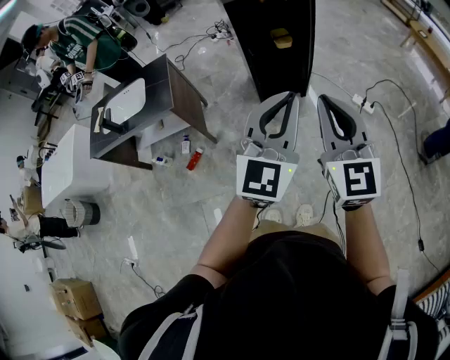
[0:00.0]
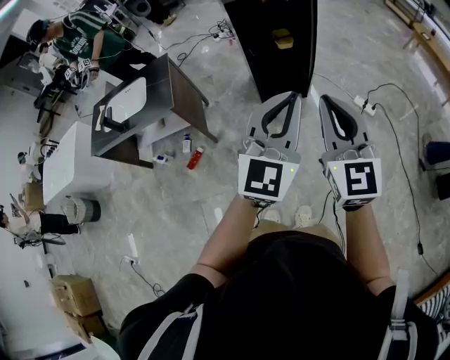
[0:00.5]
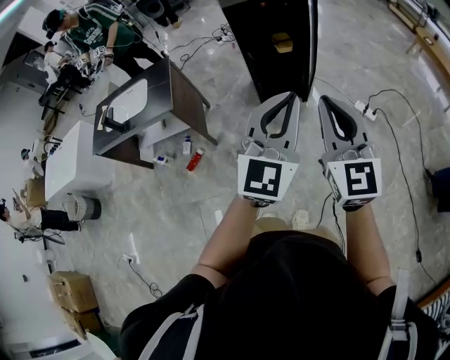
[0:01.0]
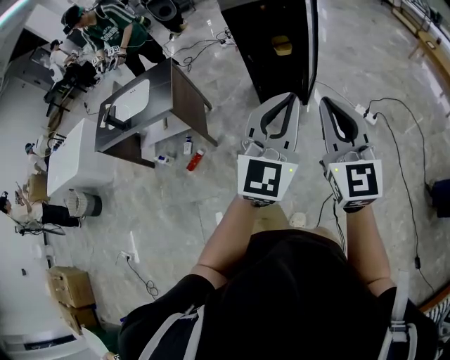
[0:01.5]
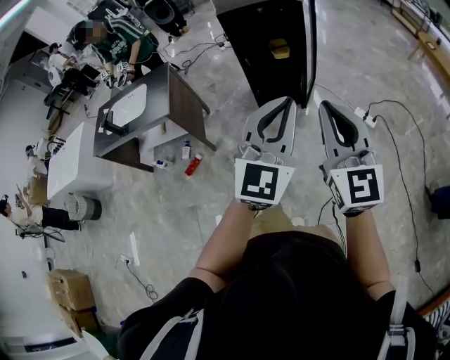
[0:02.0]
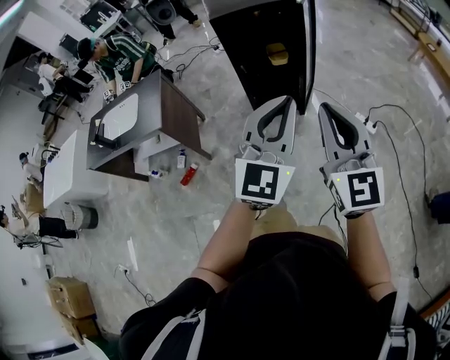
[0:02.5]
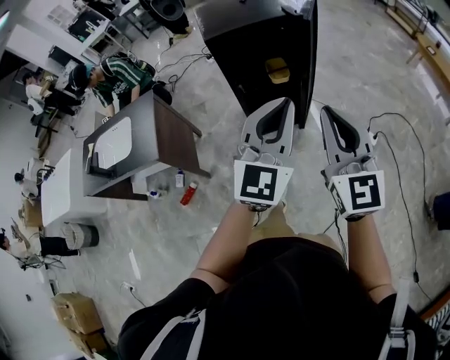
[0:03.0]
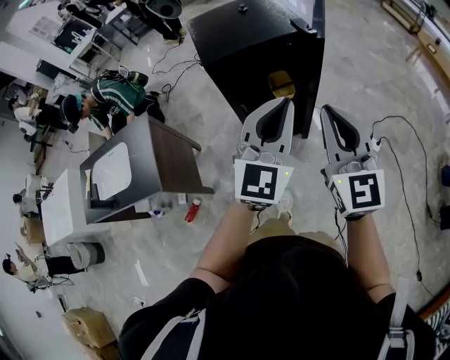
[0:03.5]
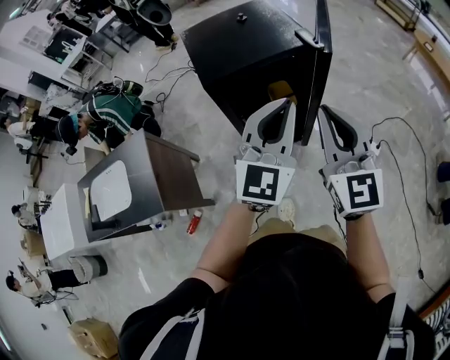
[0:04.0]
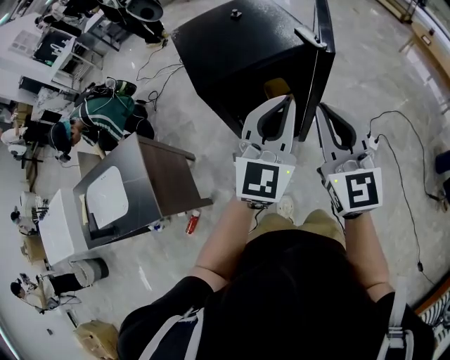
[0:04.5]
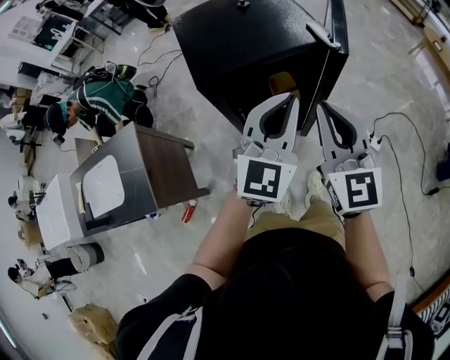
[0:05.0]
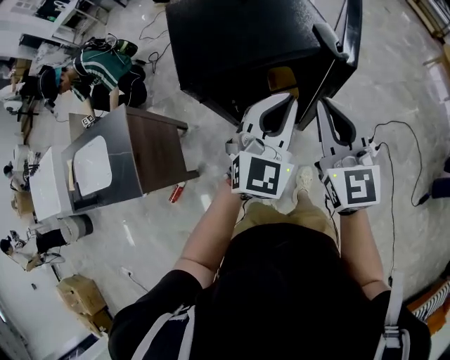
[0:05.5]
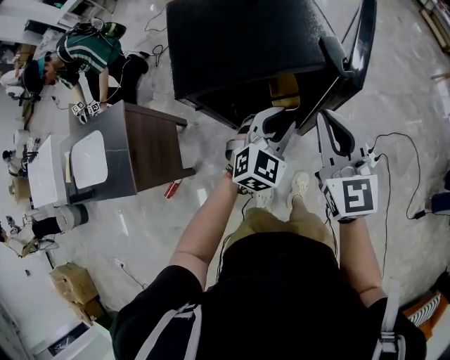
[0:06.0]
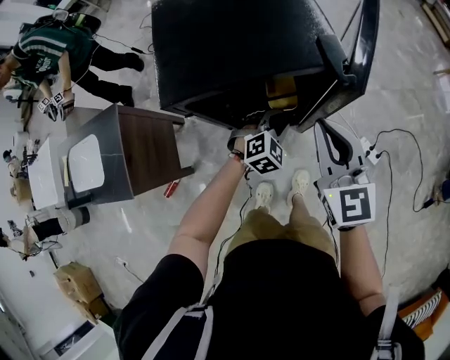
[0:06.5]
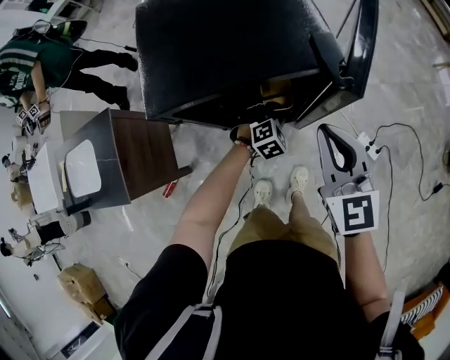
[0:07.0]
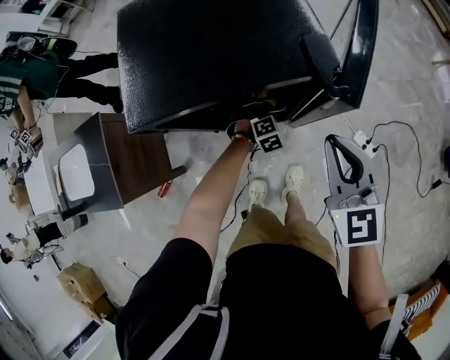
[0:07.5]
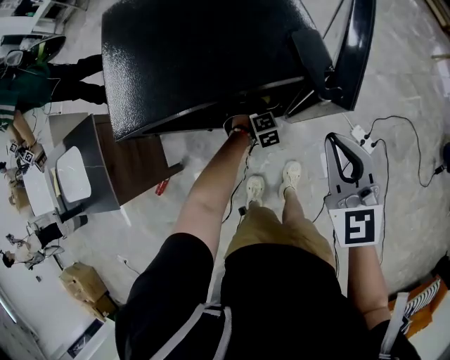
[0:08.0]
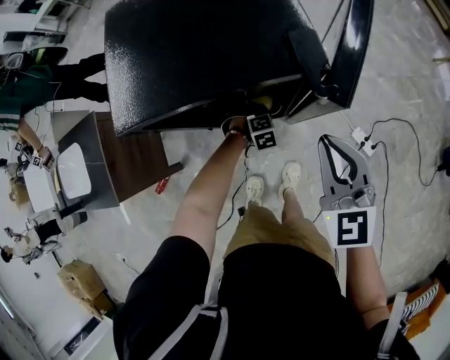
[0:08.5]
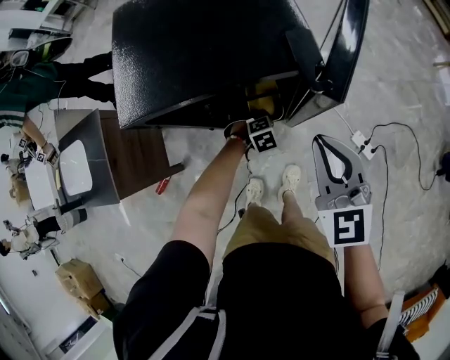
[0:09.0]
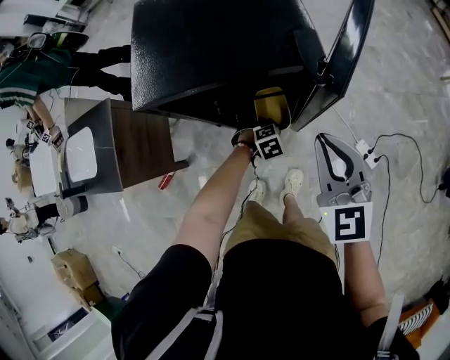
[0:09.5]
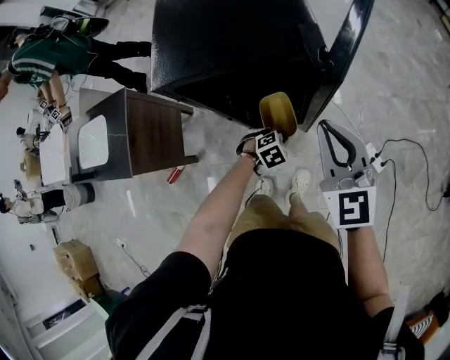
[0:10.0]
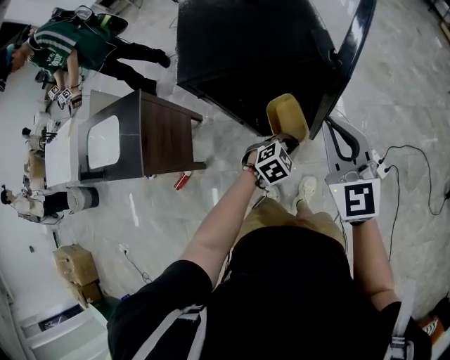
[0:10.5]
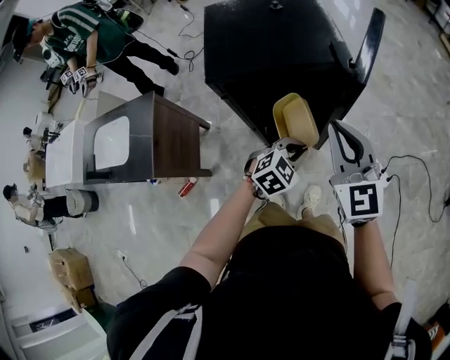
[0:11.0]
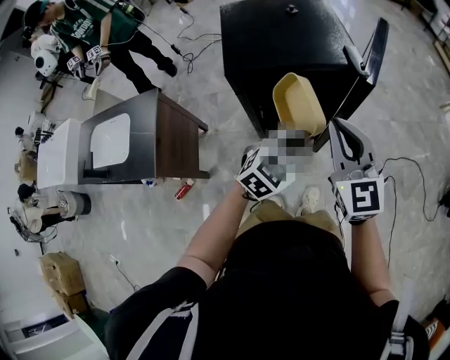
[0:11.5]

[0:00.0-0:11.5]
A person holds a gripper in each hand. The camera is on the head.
0:00.0 to 0:02.0: Both grippers travel together to the right, roughly 10 cm.
0:02.0 to 0:04.0: Both grippers are carried forward, roughly 60 cm.
0:04.0 to 0:06.0: The left gripper heads downward and forward, covering about 30 cm, points its fingers roughly 30 degrees further downward, and opens up, while the right gripper moves forward and downward, about 25 cm.
0:06.0 to 0:07.5: The right gripper goes some 10 cm downward and to the right, while the left gripper goes roughly 30 cm downward, and points its fingers approximately 40 degrees further downward.
0:07.5 to 0:09.5: The left gripper moves some 10 cm, and closes its fingers.
0:09.5 to 0:11.5: The left gripper travels upward and backward by some 40 cm, and tips its fingers upward by roughly 50 degrees. The right gripper goes about 20 cm backward, upward and to the left.

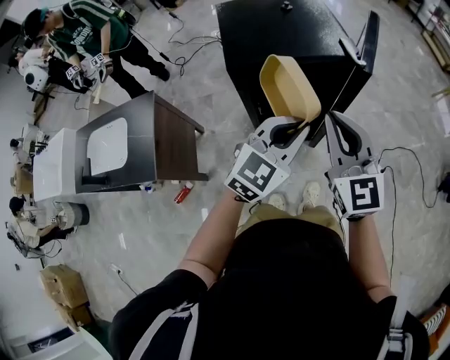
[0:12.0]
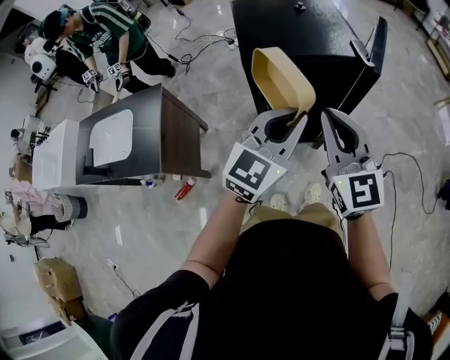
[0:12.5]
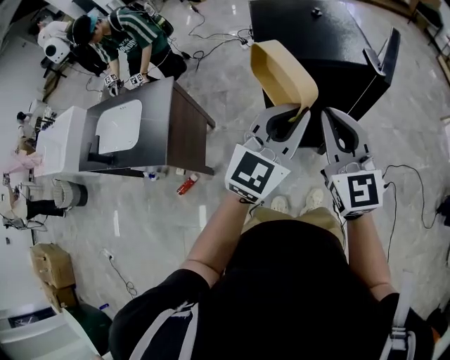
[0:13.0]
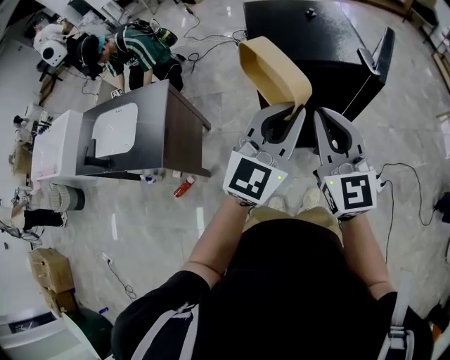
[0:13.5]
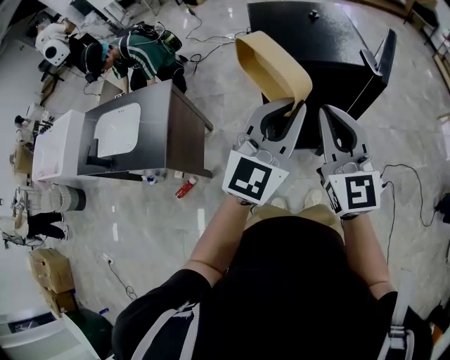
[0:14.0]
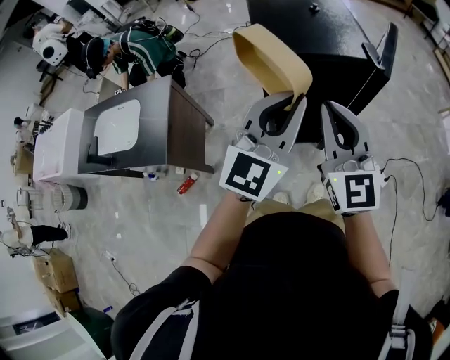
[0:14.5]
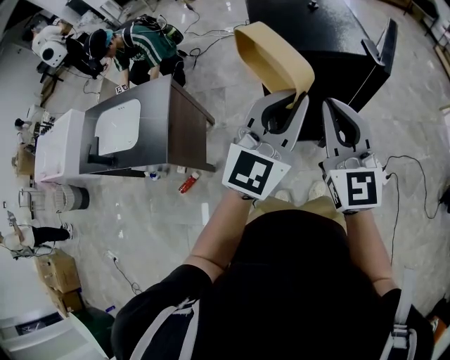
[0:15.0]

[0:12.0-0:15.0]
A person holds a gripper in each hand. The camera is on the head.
0:12.0 to 0:13.5: The left gripper travels upward and to the left by approximately 10 cm, and turns by approximately 20 degrees, while the right gripper travels to the left by some 5 cm.
0:13.5 to 0:15.0: There are only small adjustments of the grippers.

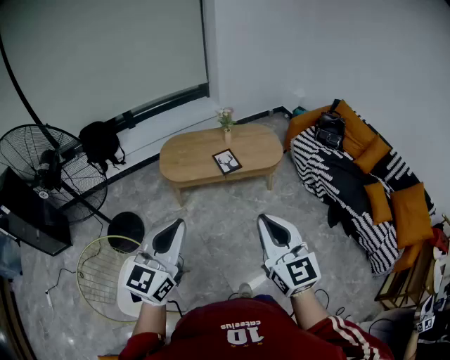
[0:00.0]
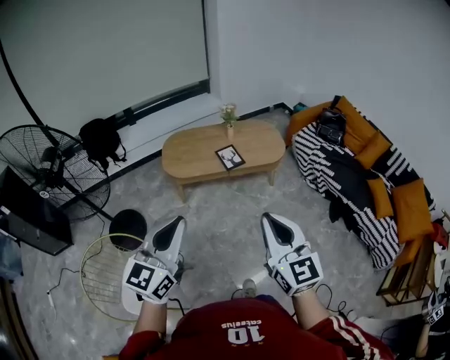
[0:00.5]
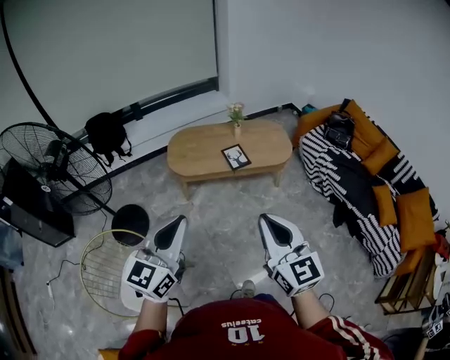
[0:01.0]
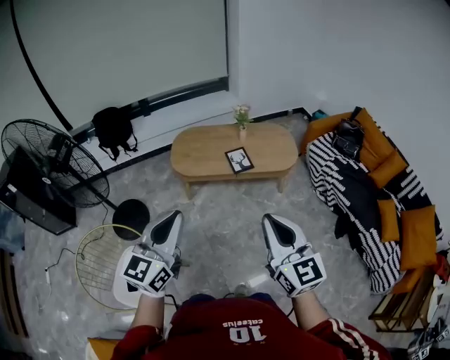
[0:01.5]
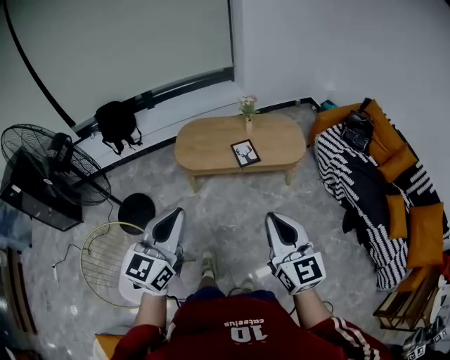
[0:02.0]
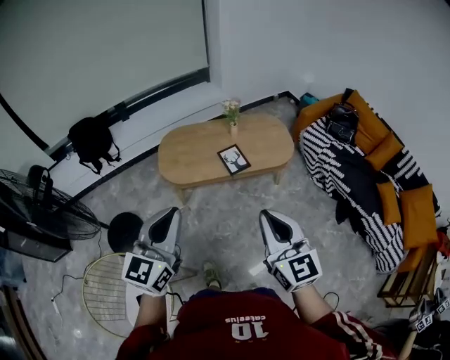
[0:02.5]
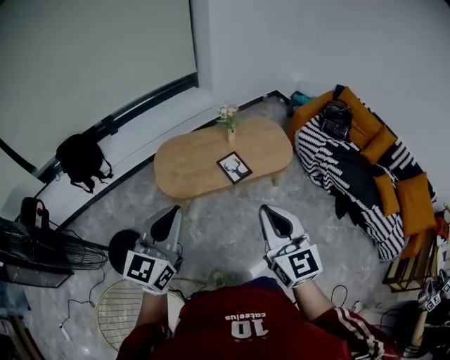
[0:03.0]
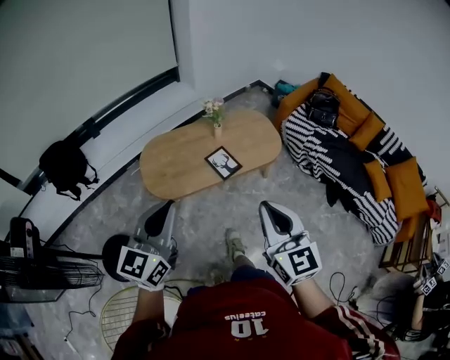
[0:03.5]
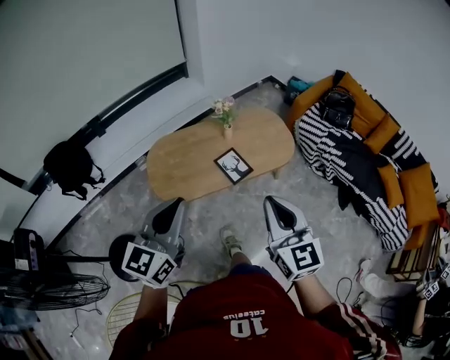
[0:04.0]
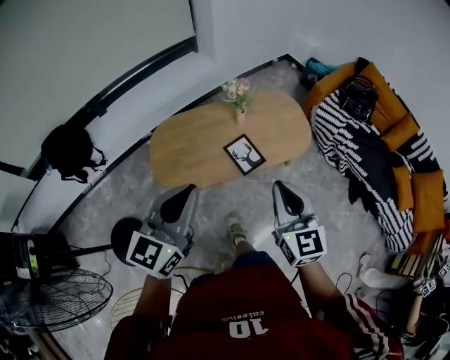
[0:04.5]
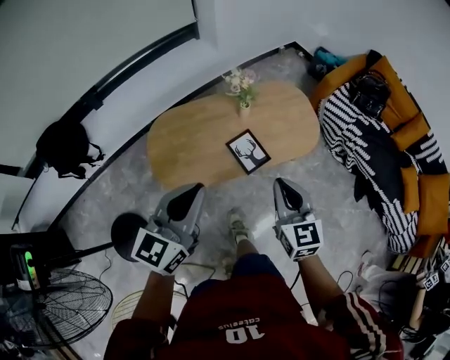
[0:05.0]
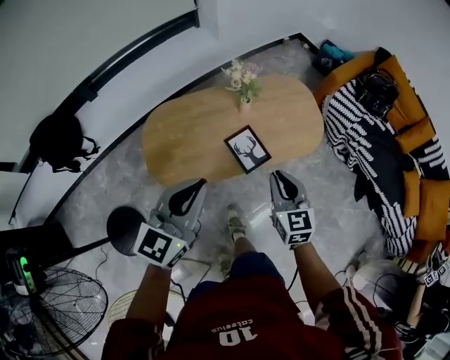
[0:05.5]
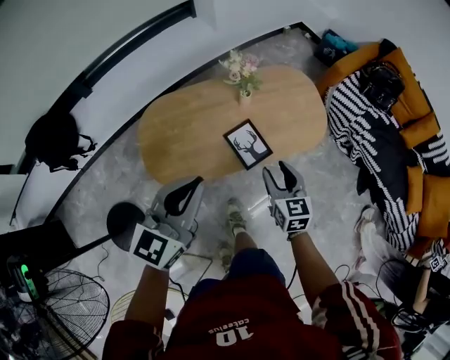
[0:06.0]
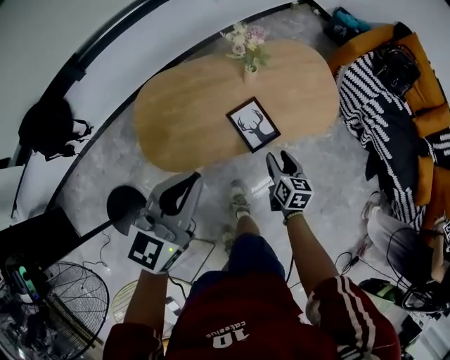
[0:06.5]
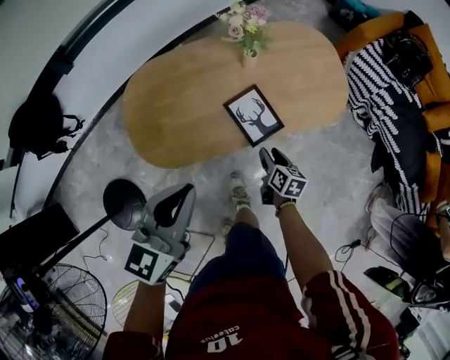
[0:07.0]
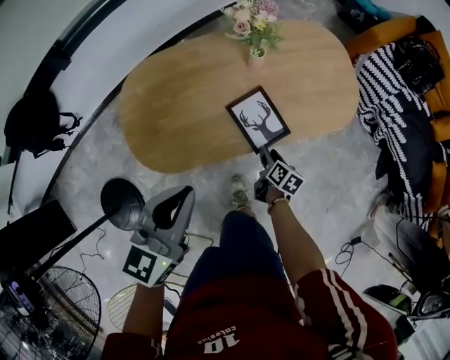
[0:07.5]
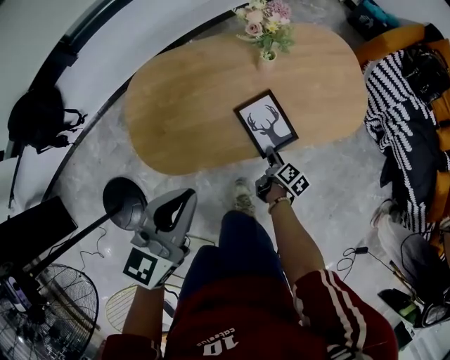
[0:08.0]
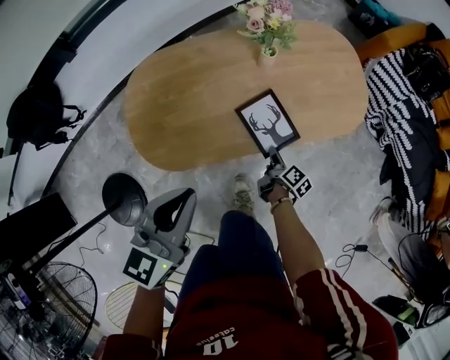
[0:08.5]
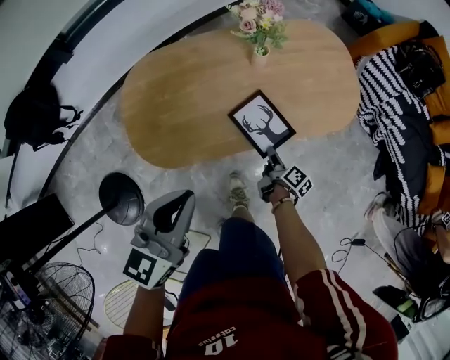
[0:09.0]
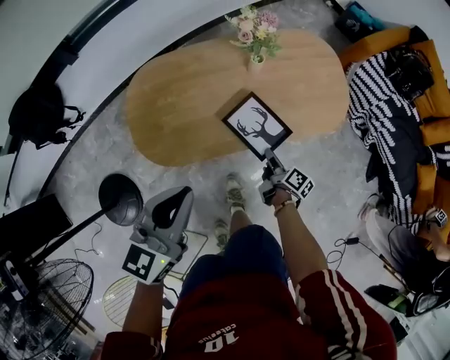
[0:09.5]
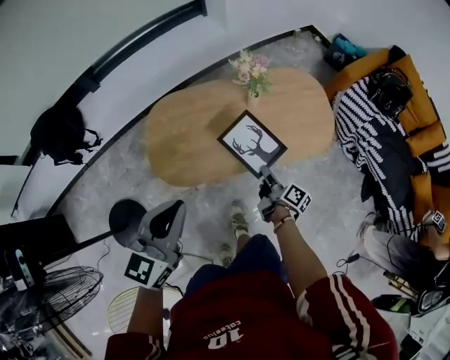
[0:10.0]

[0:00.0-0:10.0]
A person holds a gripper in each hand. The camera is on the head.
0:00.0 to 0:02.0: Both grippers move forward, approximately 5 cm.
0:02.0 to 0:04.0: The grippers both shift forward and to the left by about 30 cm. The right gripper changes its angle by some 20 degrees. Meanwhile the left gripper changes its angle by some 20 degrees.
0:04.0 to 0:06.0: The right gripper moves downward and forward, some 40 cm, rotates roughly 20 degrees, and opens its fingers. Meanwhile the left gripper heads forward and downward, covering approximately 25 cm.
0:06.0 to 0:08.0: The right gripper heads downward, covering approximately 35 cm, and twists some 60 degrees clockwise, seen from behind, while the left gripper moves downward, some 15 cm.
0:08.0 to 0:10.0: The left gripper goes approximately 15 cm upward and backward. The right gripper shifts roughly 20 cm upward, rotates approximately 30 degrees, and closes its fingers.

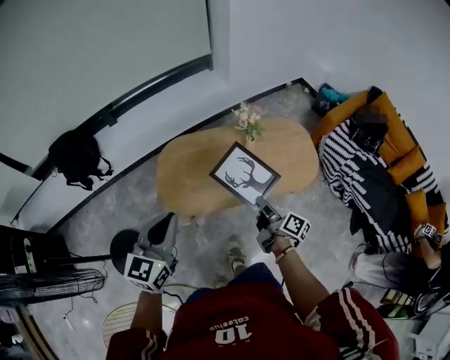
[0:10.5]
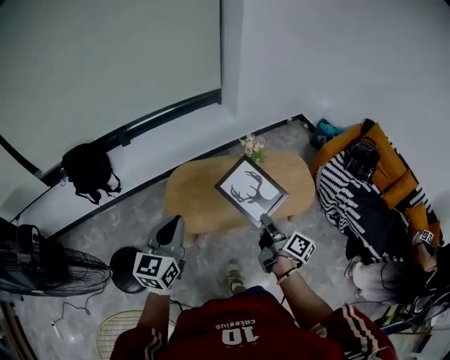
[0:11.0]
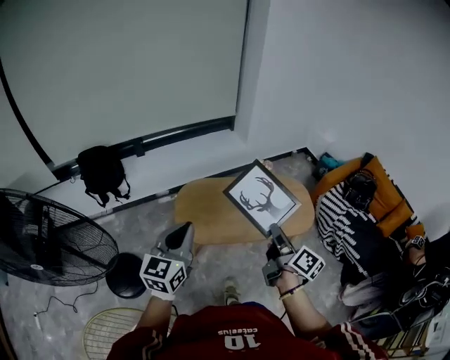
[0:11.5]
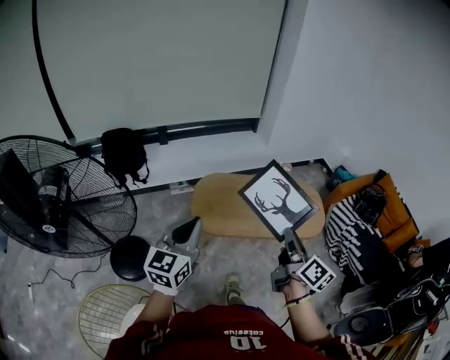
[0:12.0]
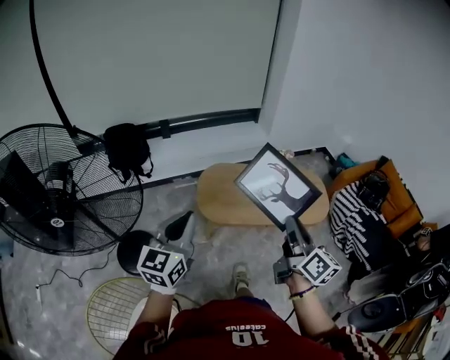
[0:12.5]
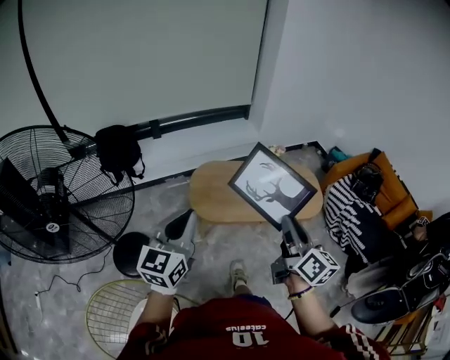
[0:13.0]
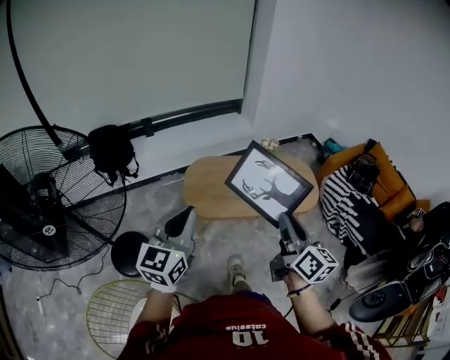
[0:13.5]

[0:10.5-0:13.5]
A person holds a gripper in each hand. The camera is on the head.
0:10.5 to 0:12.0: The left gripper travels backward, upward and to the left by some 20 cm. The right gripper travels upward and backward by approximately 30 cm, and swivels roughly 30 degrees.
0:12.0 to 0:13.5: The grippers stay close to where they were, moving slightly.
